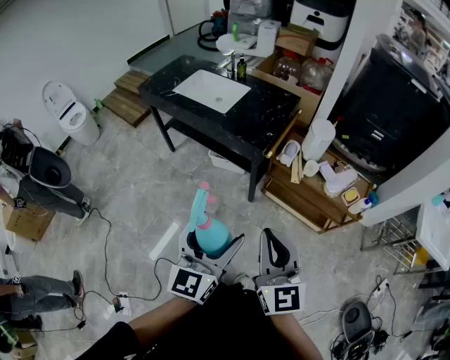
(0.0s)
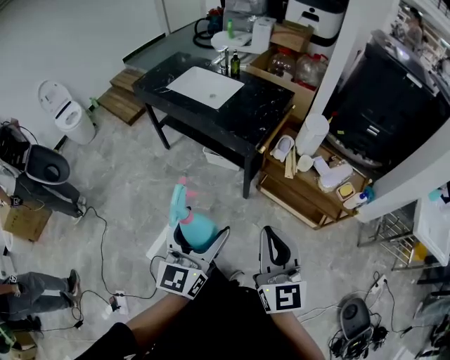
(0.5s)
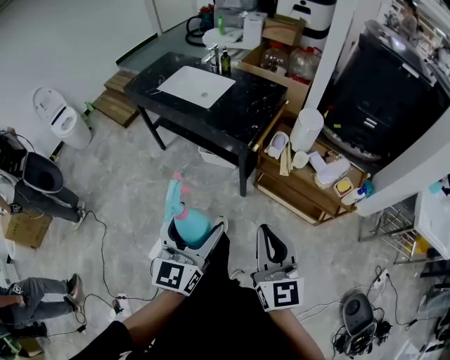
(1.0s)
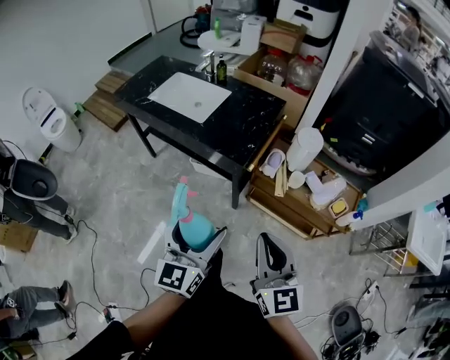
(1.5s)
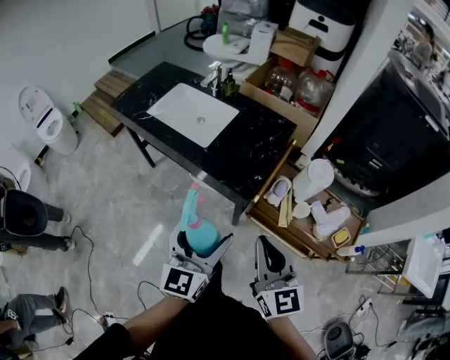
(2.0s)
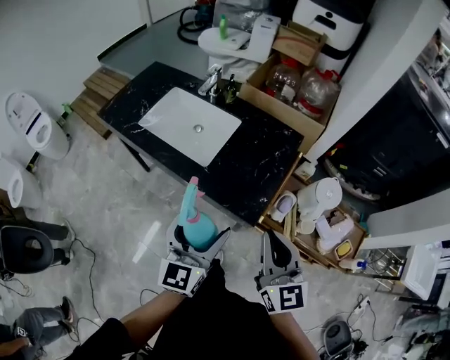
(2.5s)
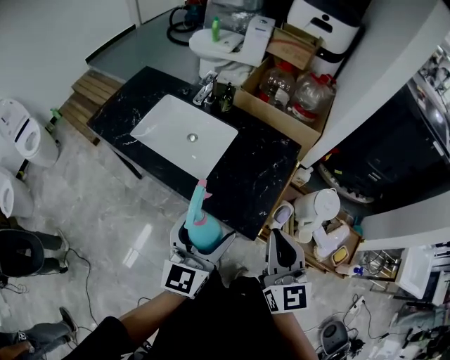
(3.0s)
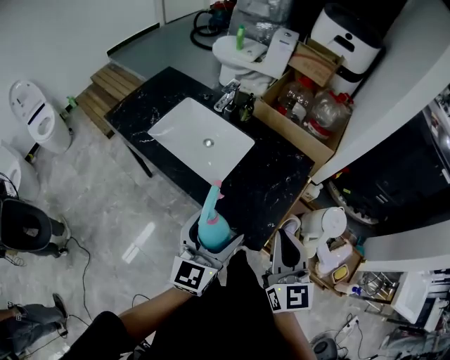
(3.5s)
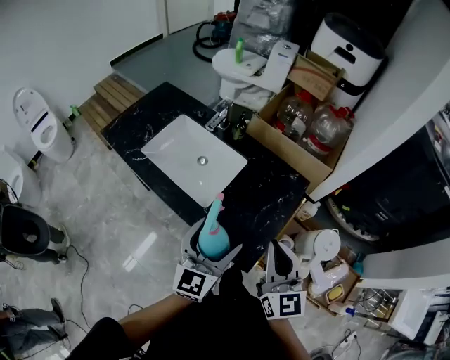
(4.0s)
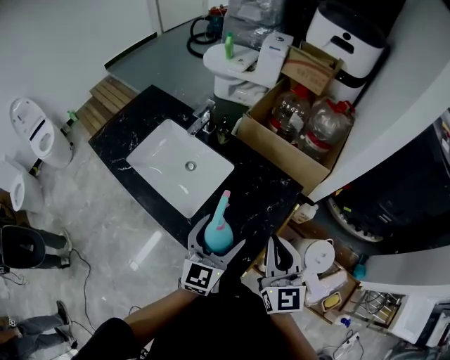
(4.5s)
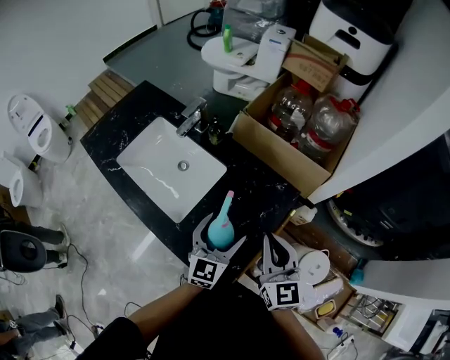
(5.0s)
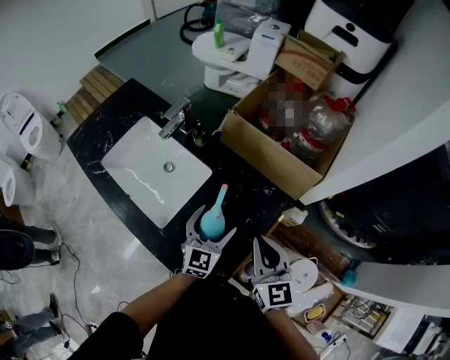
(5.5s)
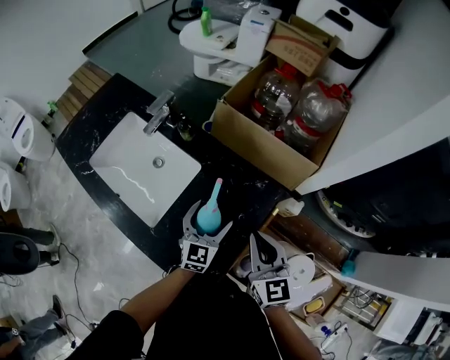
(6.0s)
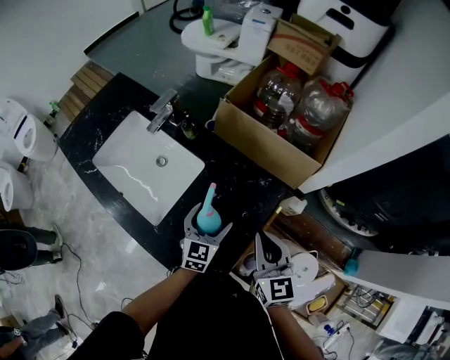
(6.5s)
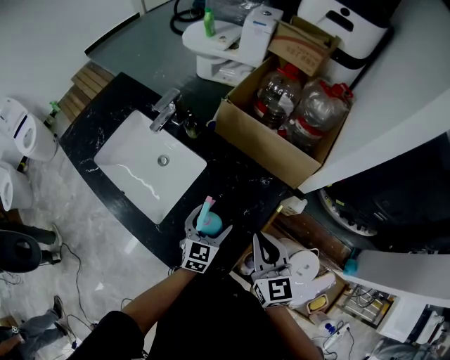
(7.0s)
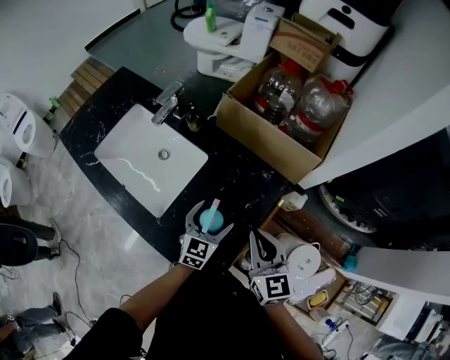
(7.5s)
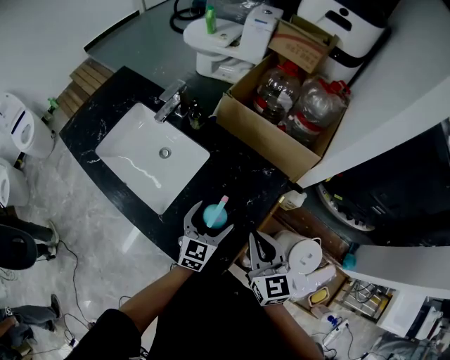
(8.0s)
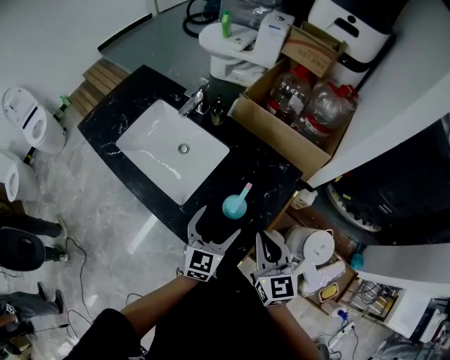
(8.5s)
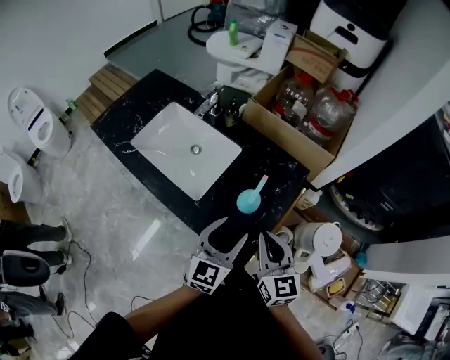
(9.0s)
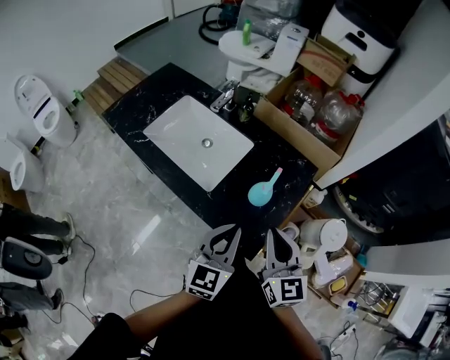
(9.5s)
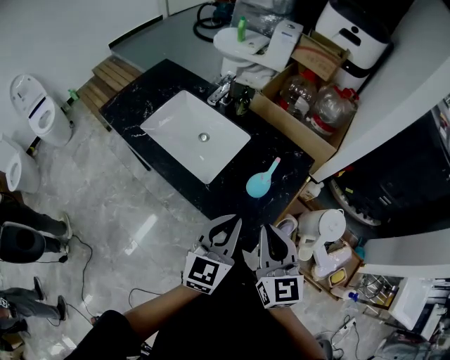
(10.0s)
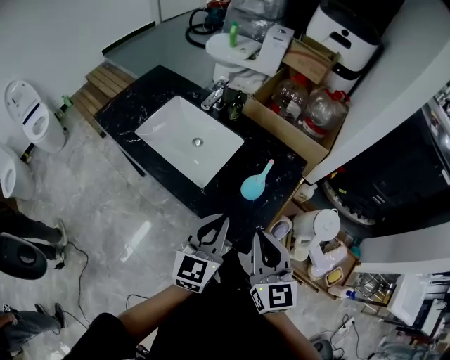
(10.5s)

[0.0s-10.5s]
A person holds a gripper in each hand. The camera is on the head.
0.0s to 2.0s: The grippers both shift forward by roughly 25 cm.
2.0s to 4.0s: The two grippers go roughly 25 cm forward.
4.0s to 6.5s: The right gripper moves forward, to the right and downward, some 25 cm. The left gripper heads downward, forward and to the right, covering some 30 cm, and rotates some 20 degrees.
6.5s to 8.5s: The right gripper is displaced backward and to the left by roughly 10 cm, while the left gripper moves backward, upward and to the left, roughly 15 cm.
8.5s to 10.5s: The left gripper is displaced upward, backward and to the left by roughly 20 cm, and closes up. Meanwhile the right gripper shifts approximately 15 cm backward, to the left and upward.

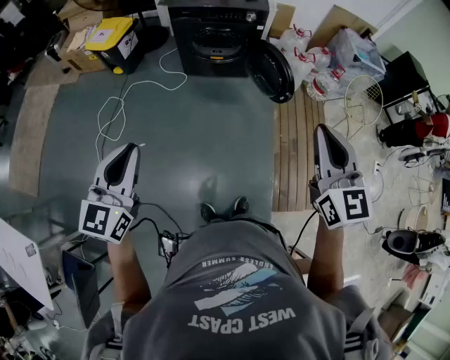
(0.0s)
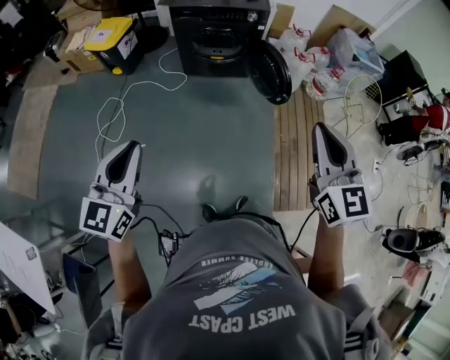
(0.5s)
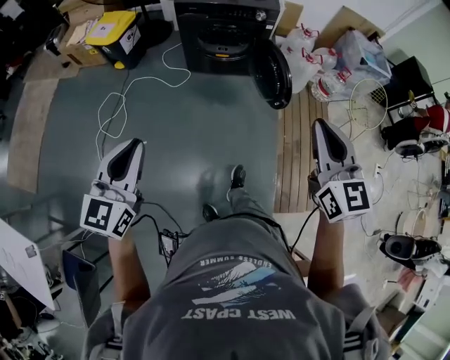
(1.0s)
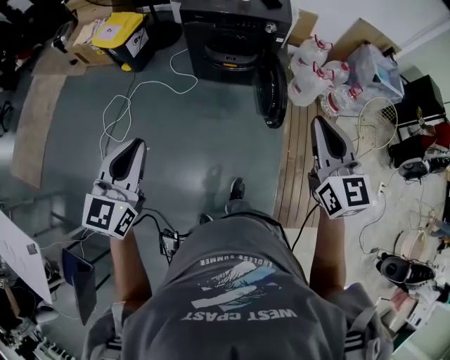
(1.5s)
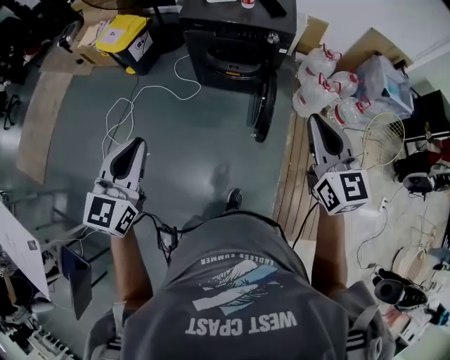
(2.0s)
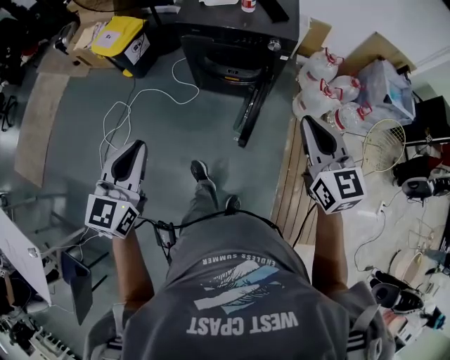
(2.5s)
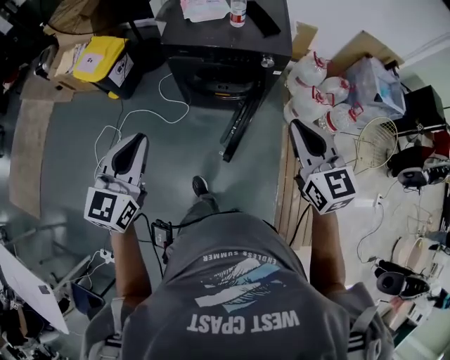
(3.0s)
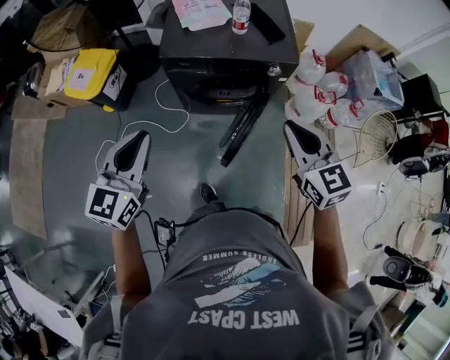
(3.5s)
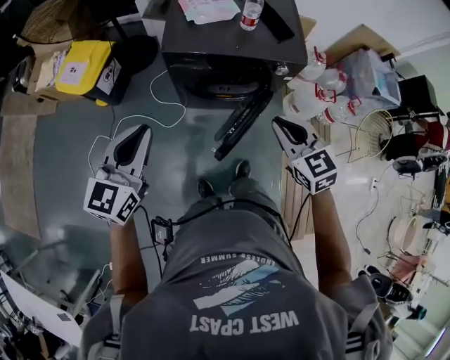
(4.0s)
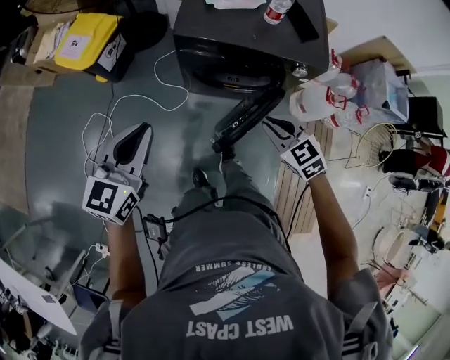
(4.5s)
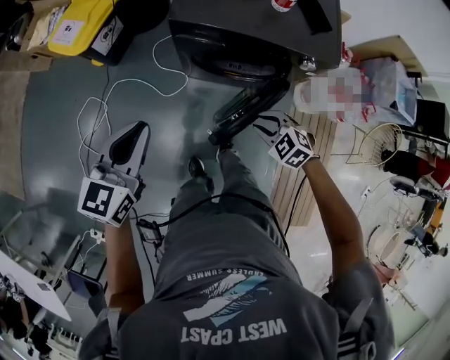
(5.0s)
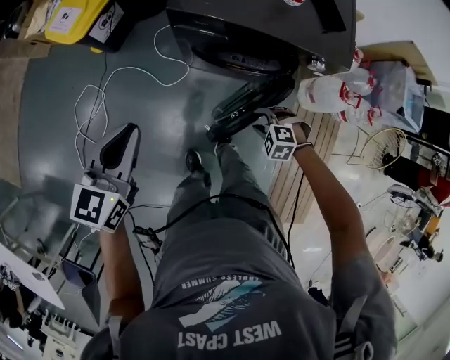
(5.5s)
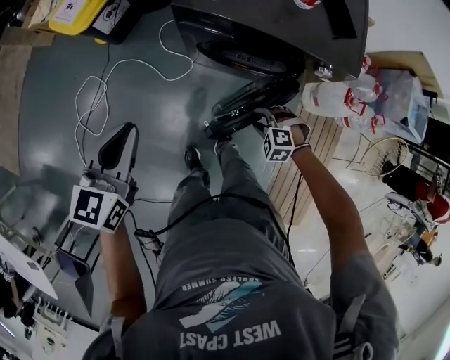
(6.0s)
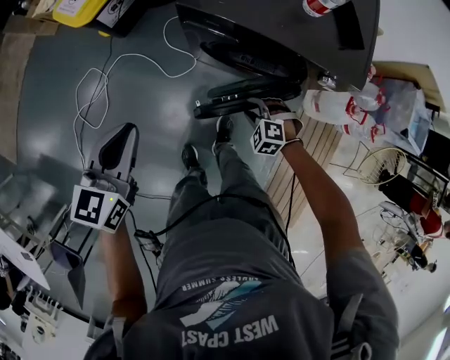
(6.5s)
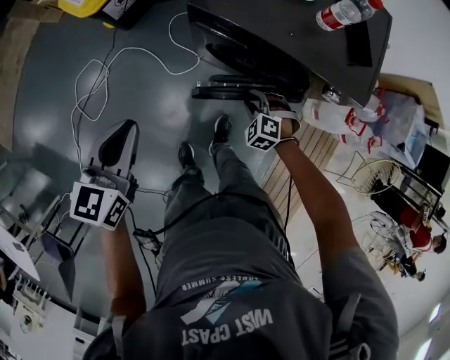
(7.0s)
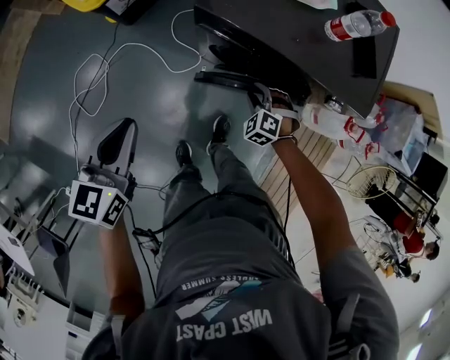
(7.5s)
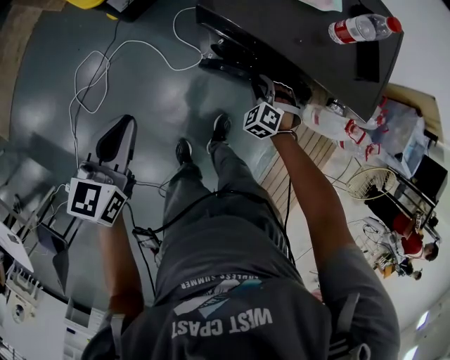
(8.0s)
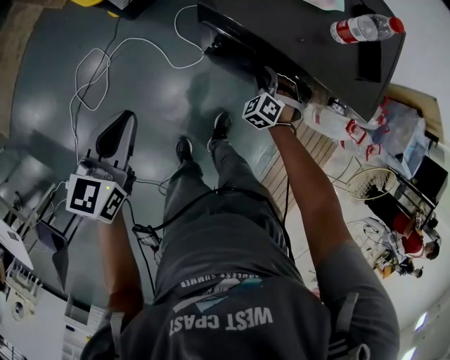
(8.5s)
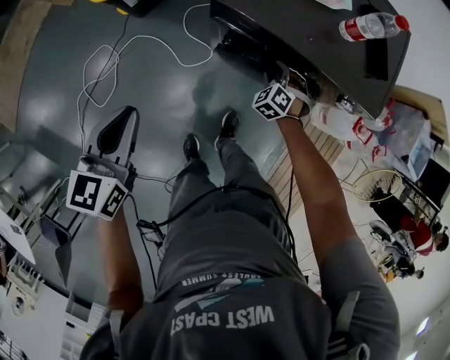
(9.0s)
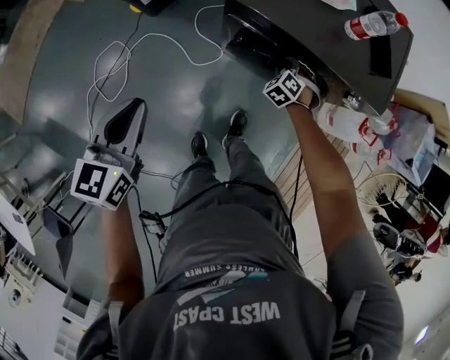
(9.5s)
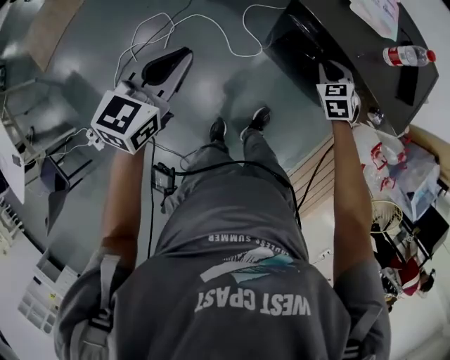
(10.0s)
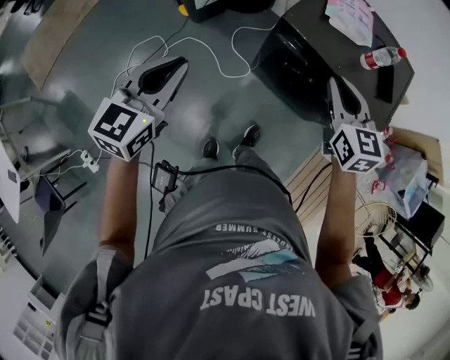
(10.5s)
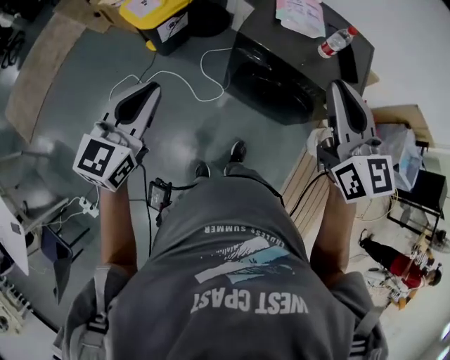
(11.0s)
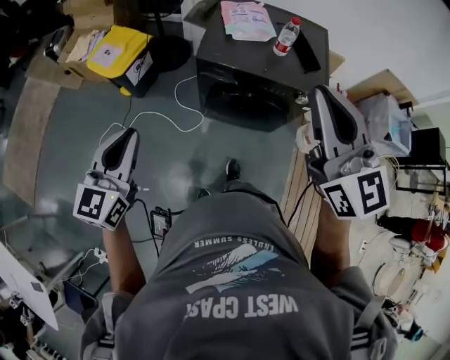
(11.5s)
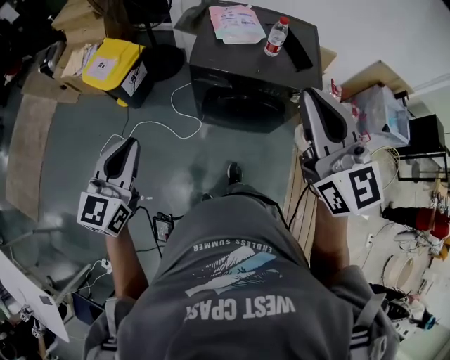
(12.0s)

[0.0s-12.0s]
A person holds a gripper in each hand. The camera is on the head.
0.0s to 2.0s: The two grippers go roughly 25 cm forward.
2.0s to 4.0s: The left gripper goes some 35 cm forward. Meanwhile the right gripper shifts approximately 35 cm forward, to the left and downward, and changes its angle by roughly 20 degrees.
4.0s to 6.0s: The left gripper goes about 15 cm downward, and rotates about 20 degrees. Meanwhile the right gripper goes about 35 cm downward, points its fingers roughly 40 degrees further downward, and opens up.
6.0s to 8.0s: The left gripper changes place by some 5 cm, while the right gripper moves forward, some 20 cm, and rotates roughly 20 degrees.
8.0s to 10.0s: The left gripper heads upward and backward, covering about 10 cm. The right gripper goes roughly 15 cm upward, and turns by some 30 degrees.
10.0s to 12.0s: The right gripper moves upward and backward, some 50 cm, and tips its fingers upward by roughly 50 degrees, while the left gripper moves upward, approximately 10 cm, and rotates approximately 20 degrees.

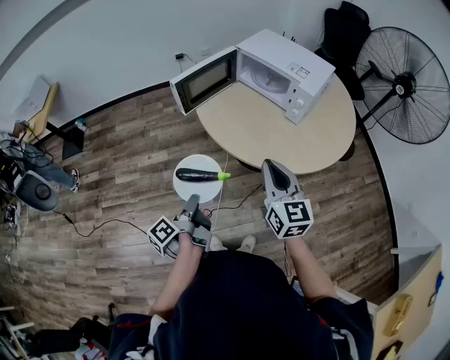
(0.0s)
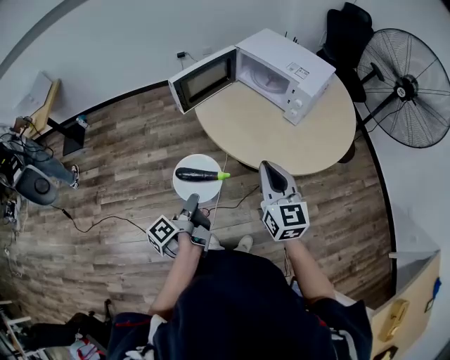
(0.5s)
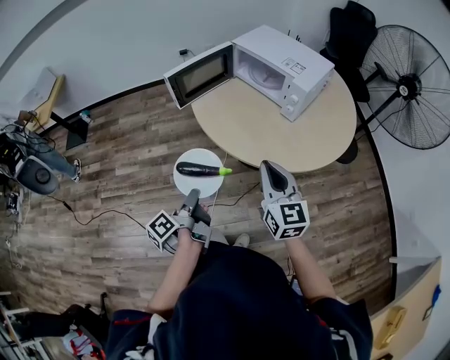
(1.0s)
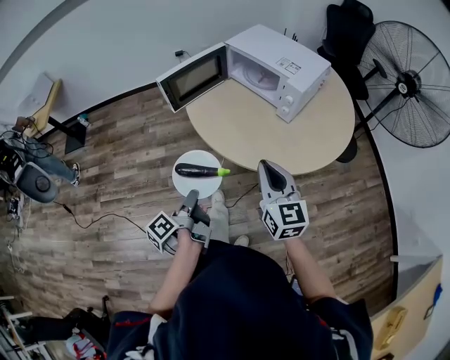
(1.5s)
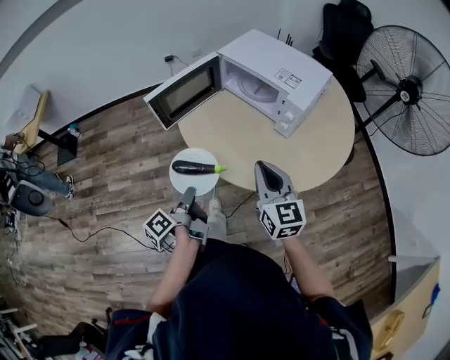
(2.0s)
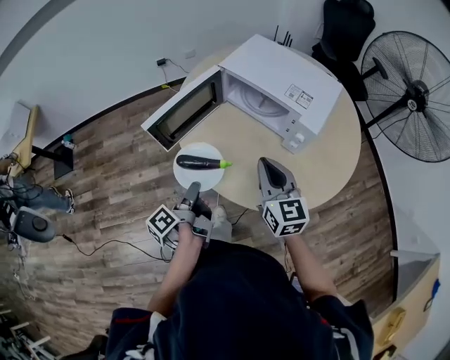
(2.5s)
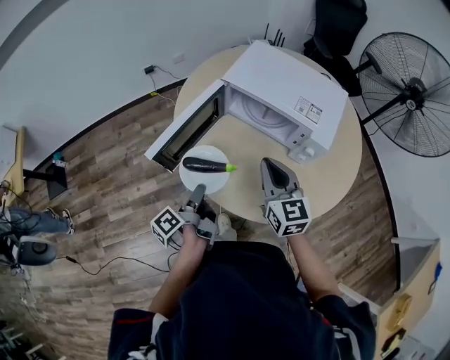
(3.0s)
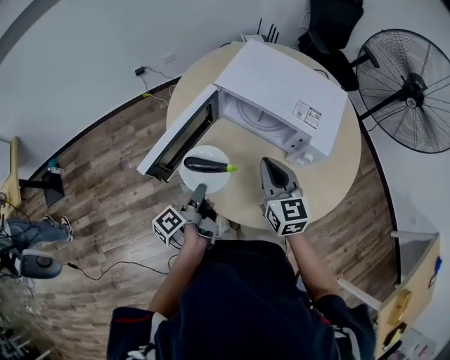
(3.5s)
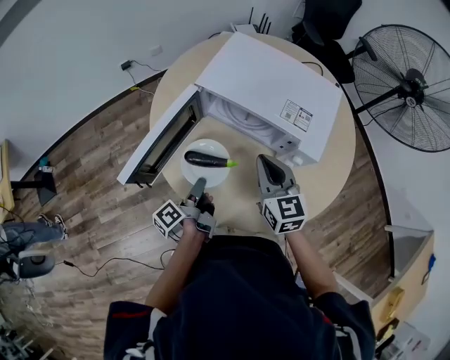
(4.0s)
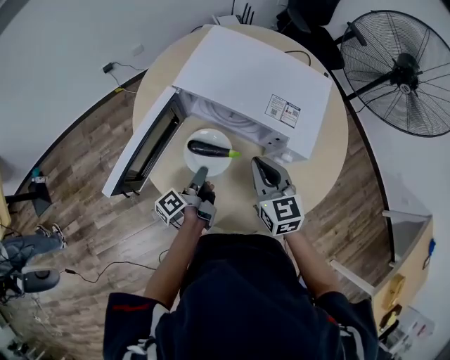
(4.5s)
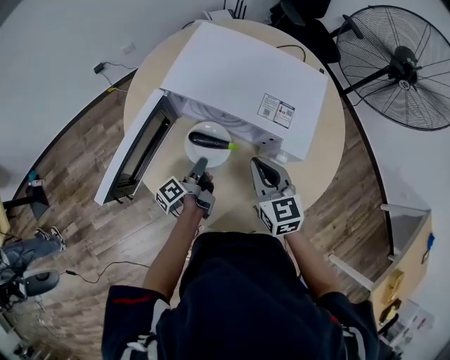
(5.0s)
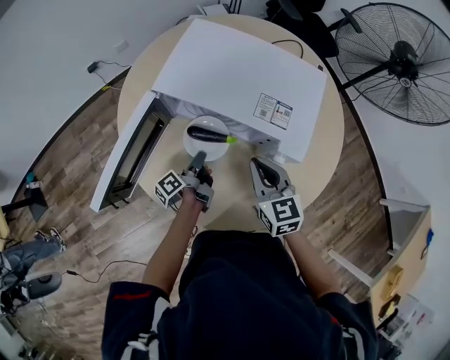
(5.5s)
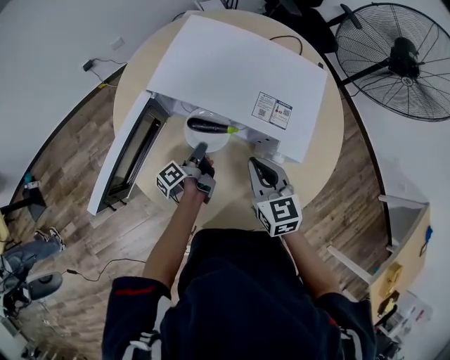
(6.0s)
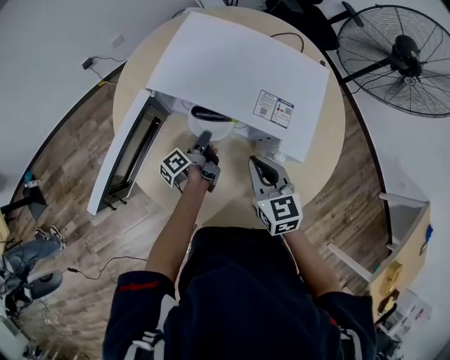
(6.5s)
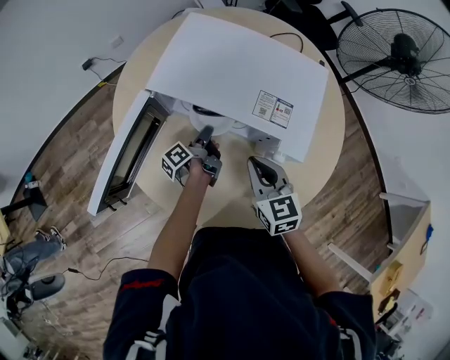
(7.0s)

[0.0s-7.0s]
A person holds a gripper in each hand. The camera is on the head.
0.0s to 2.0s: The two grippers go some 15 cm forward and to the right.
2.0s to 3.5s: Both grippers travel together forward, roughly 25 cm.
3.5s to 5.0s: The left gripper travels forward, to the right and downward by roughly 20 cm, while the right gripper goes roughly 10 cm to the right and downward.
5.0s to 7.0s: The left gripper moves forward, roughly 10 cm.
